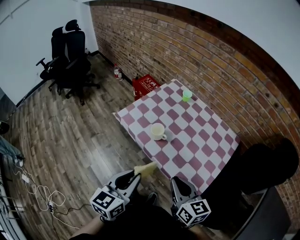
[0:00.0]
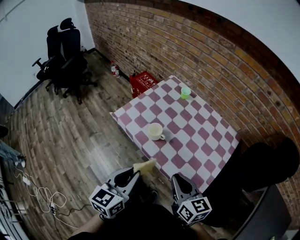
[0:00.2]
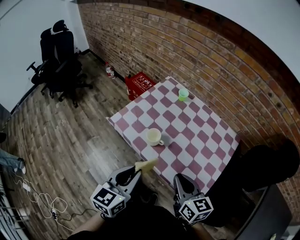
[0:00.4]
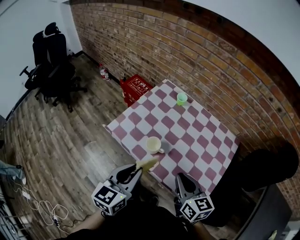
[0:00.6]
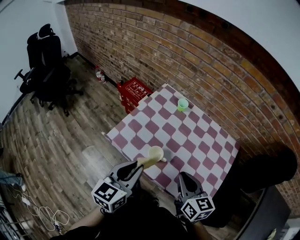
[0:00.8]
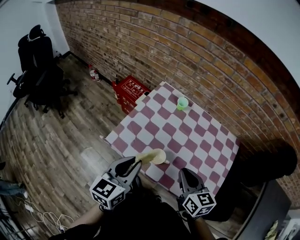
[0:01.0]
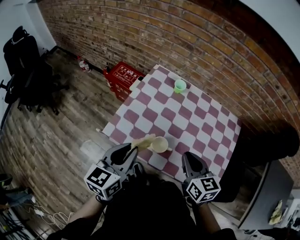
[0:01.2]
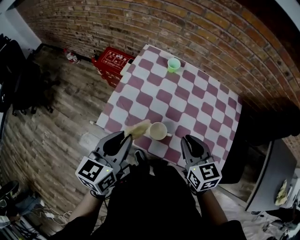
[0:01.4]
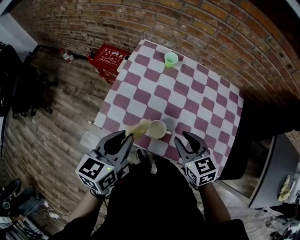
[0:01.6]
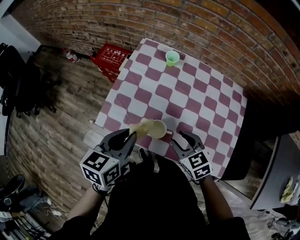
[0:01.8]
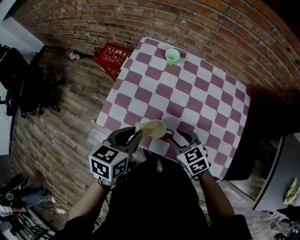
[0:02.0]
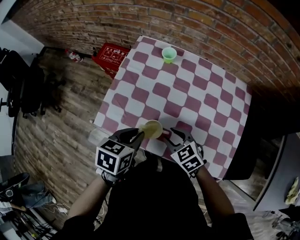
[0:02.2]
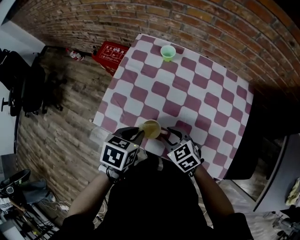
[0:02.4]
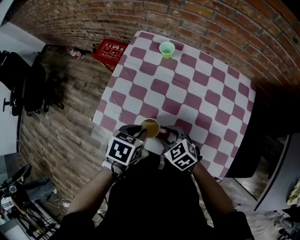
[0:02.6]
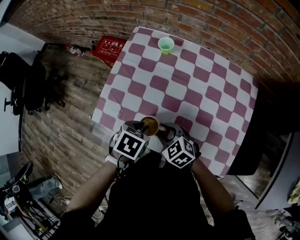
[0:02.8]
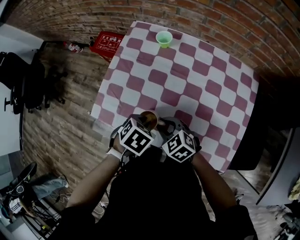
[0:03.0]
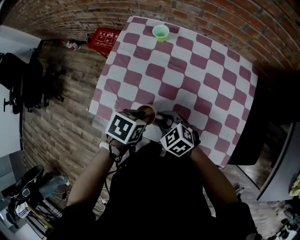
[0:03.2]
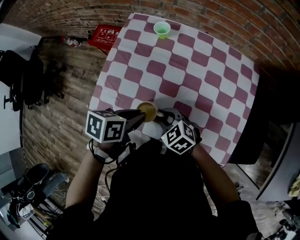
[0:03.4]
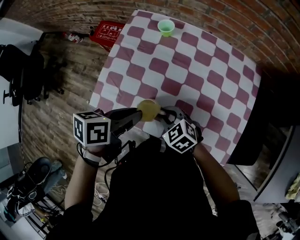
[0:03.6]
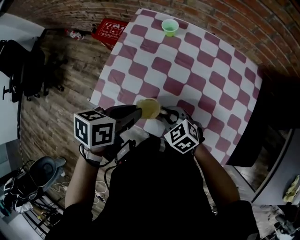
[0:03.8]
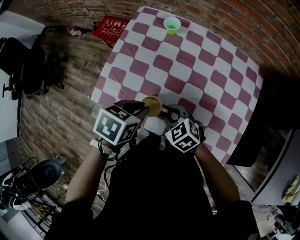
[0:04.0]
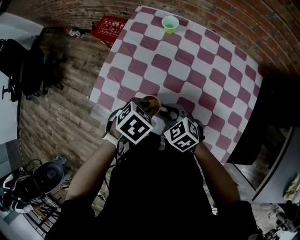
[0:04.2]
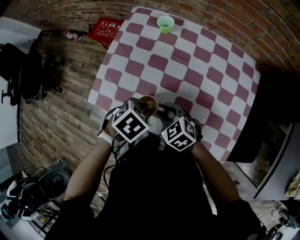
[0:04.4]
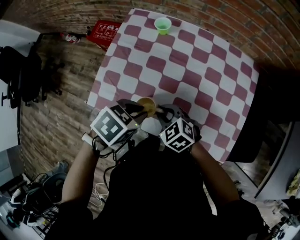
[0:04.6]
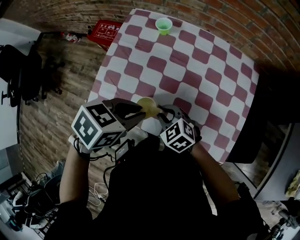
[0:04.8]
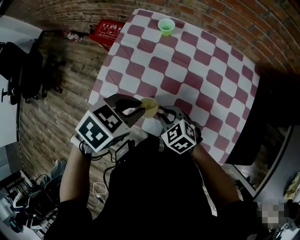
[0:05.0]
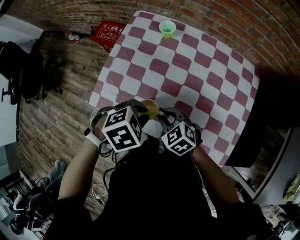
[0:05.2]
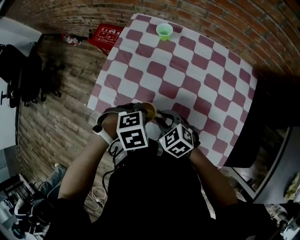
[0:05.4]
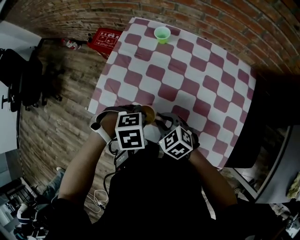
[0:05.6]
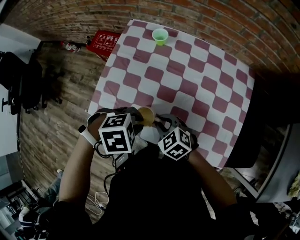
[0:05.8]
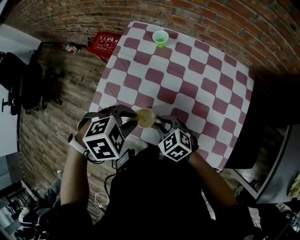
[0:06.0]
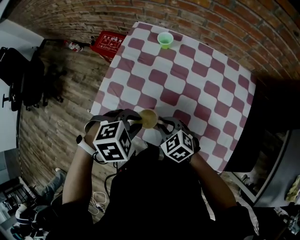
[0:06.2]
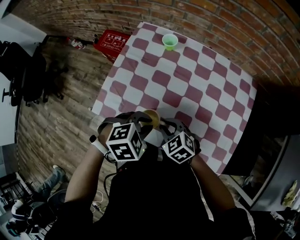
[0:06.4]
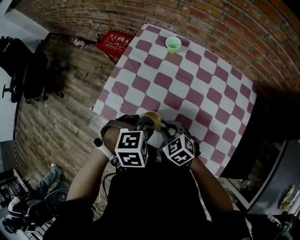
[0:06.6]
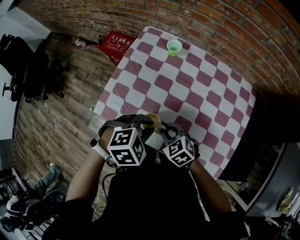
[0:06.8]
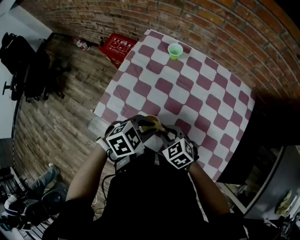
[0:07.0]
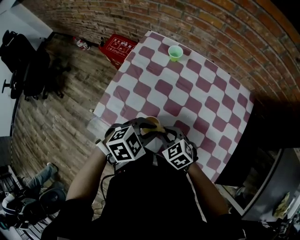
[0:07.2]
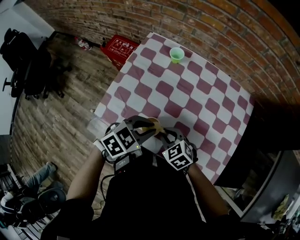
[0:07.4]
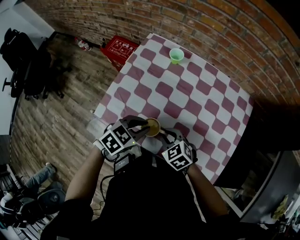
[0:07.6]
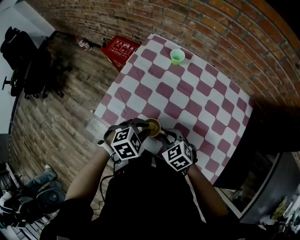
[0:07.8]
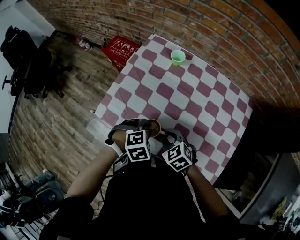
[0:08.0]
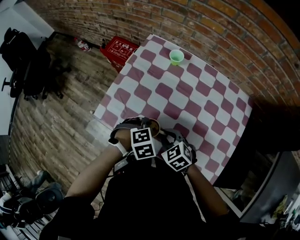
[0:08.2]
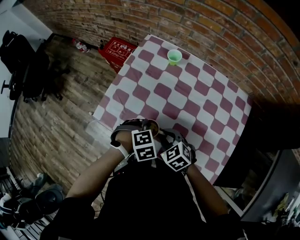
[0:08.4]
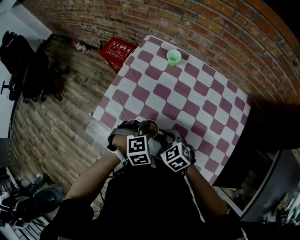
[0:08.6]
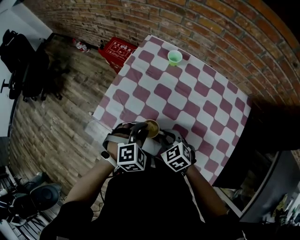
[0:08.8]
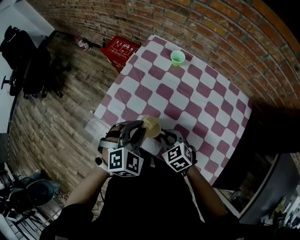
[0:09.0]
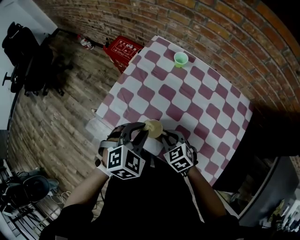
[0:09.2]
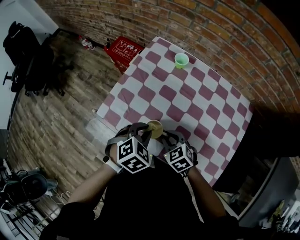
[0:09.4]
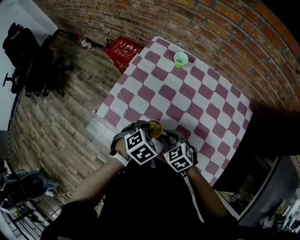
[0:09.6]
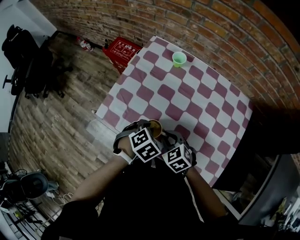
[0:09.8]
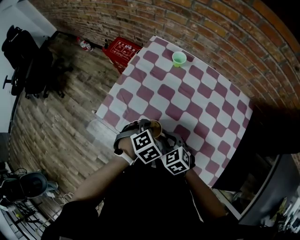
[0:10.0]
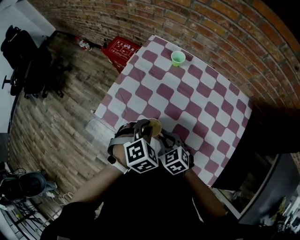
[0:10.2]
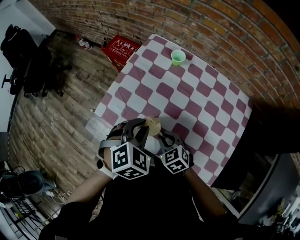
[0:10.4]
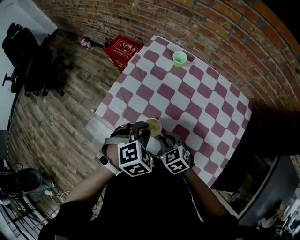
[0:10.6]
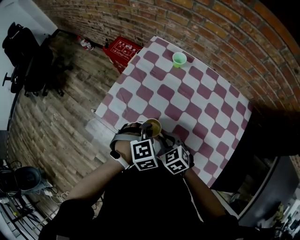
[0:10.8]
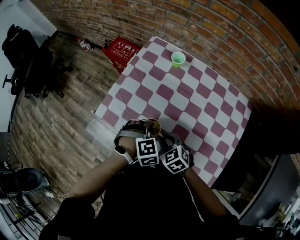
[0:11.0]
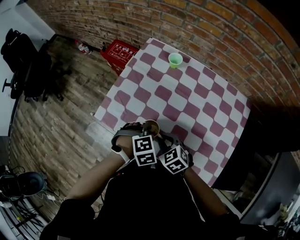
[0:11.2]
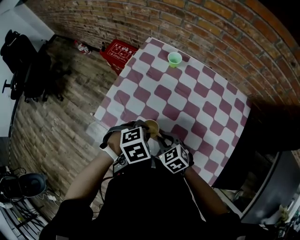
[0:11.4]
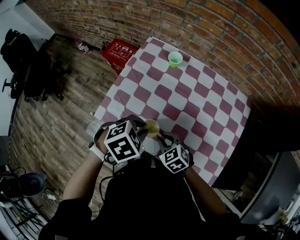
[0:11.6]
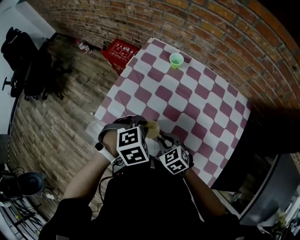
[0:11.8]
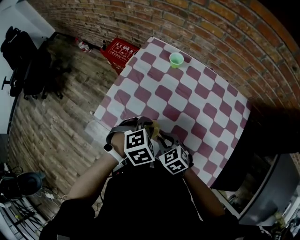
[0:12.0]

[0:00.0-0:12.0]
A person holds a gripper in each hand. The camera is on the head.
0:00.0 to 0:01.6: The left gripper heads forward and to the left, covering about 35 cm, and swivels about 20 degrees. The right gripper goes roughly 30 cm forward and downward, and rotates about 30 degrees.
0:01.6 to 0:03.0: Both grippers move downward, about 15 cm. The right gripper rotates some 30 degrees; the left gripper tilts its fingers approximately 50 degrees downward.
0:03.0 to 0:04.4: The left gripper reaches roughly 10 cm upward, then returns.
0:04.4 to 0:06.0: The left gripper swings up and down, approximately 10 cm each way, with 2 reversals, and rotates approximately 30 degrees.
0:06.0 to 0:07.6: The left gripper turns by roughly 30 degrees.
0:07.6 to 0:09.0: The left gripper heads upward, covering about 5 cm, and changes its angle by about 40 degrees.
0:09.0 to 0:10.4: The left gripper goes downward and returns, about 10 cm each way.
0:10.4 to 0:12.0: The left gripper goes up and down, approximately 10 cm each way, reversing 2 times.

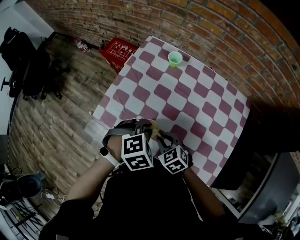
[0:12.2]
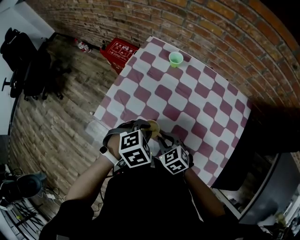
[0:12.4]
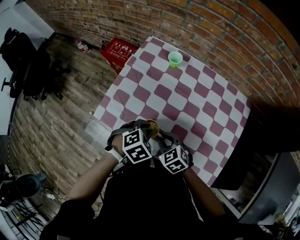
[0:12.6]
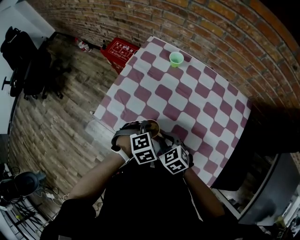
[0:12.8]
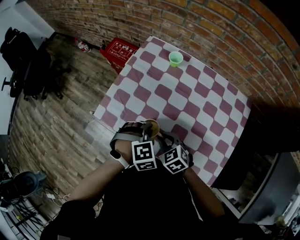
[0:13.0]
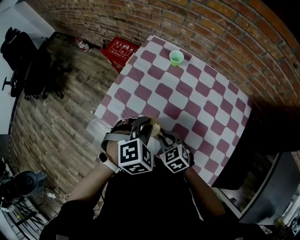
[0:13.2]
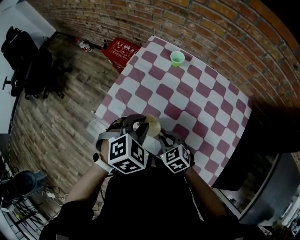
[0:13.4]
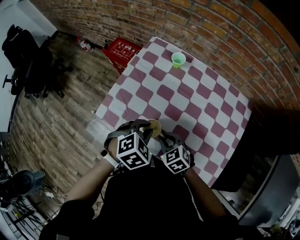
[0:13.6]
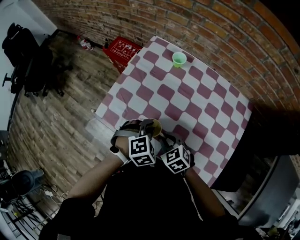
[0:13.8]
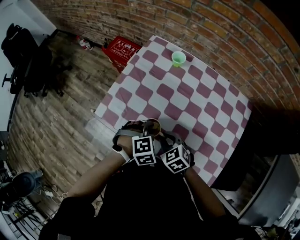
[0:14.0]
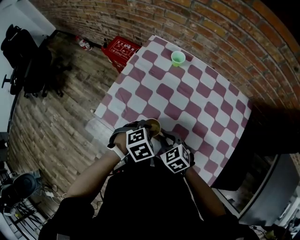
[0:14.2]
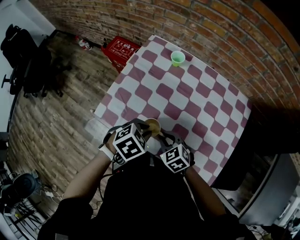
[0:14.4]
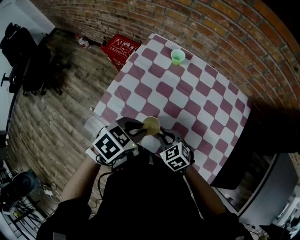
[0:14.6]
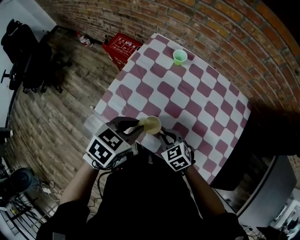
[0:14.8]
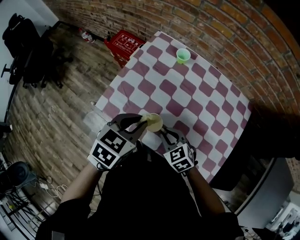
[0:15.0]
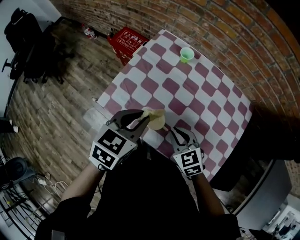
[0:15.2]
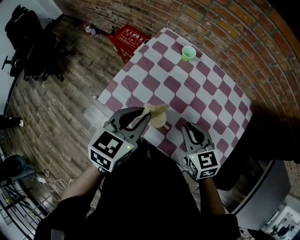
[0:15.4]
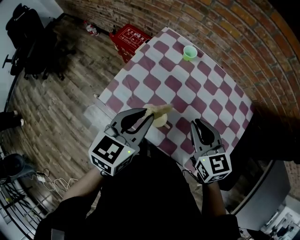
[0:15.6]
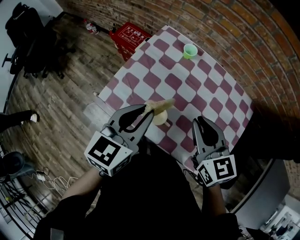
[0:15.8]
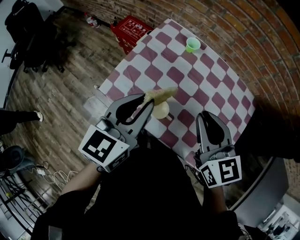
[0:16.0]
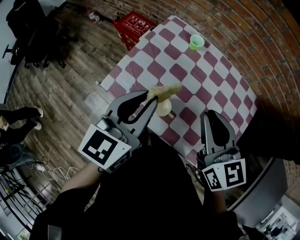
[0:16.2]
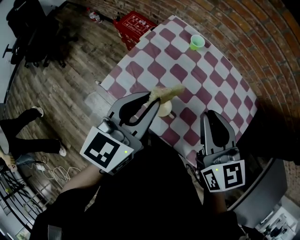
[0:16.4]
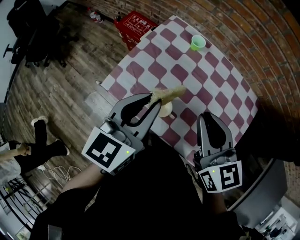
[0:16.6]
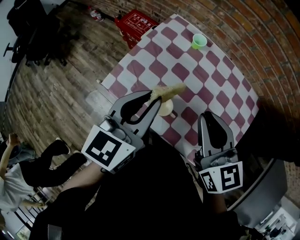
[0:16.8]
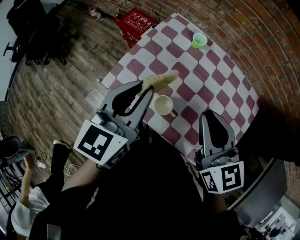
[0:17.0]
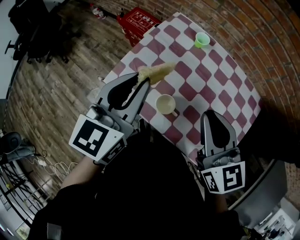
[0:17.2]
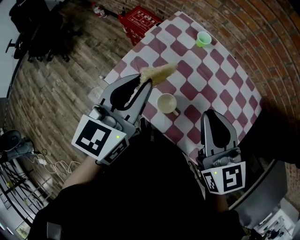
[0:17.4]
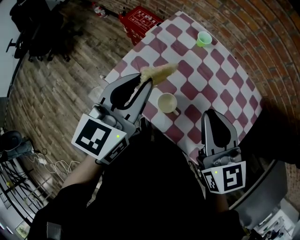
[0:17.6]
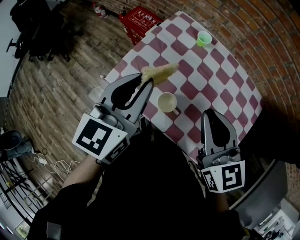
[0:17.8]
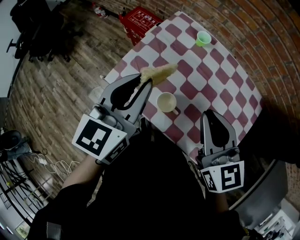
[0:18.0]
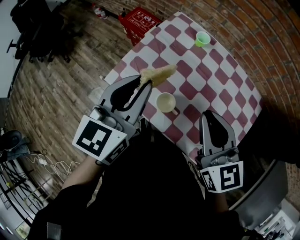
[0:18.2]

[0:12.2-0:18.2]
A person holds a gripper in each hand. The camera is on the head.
0:12.2 to 0:13.8: The left gripper moves up and down over some 15 cm, changing direction 2 times.
0:13.8 to 0:15.2: The left gripper goes roughly 15 cm upward, and rotates around the line of its fingers by approximately 50 degrees, counterclockwise from behind; the right gripper heads upward, covering roughly 5 cm.
0:15.2 to 0:16.6: The left gripper shifts approximately 10 cm upward, and swivels roughly 30 degrees; the right gripper is displaced upward by roughly 20 cm, and turns by roughly 30 degrees.
0:16.6 to 0:18.2: The grippers move only a little.

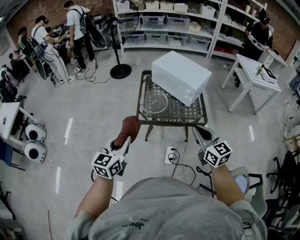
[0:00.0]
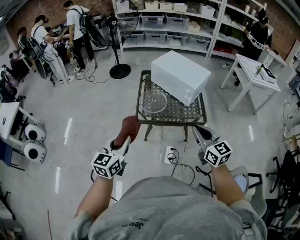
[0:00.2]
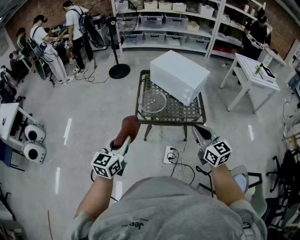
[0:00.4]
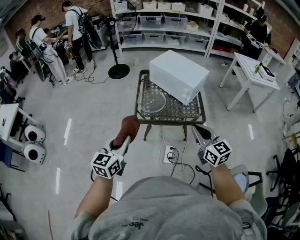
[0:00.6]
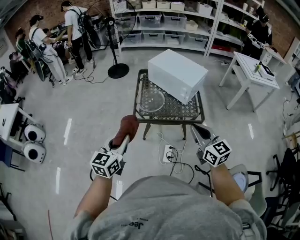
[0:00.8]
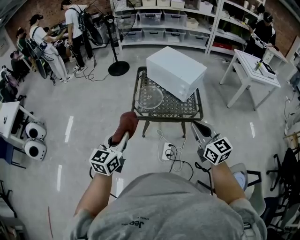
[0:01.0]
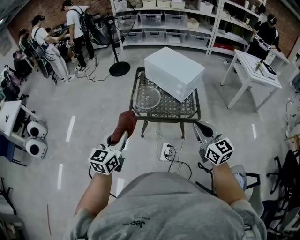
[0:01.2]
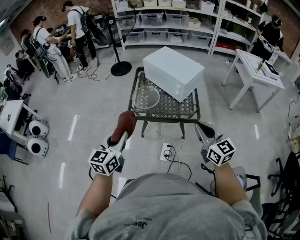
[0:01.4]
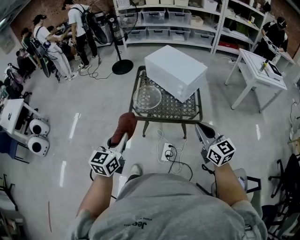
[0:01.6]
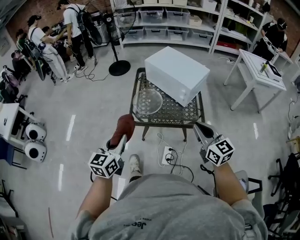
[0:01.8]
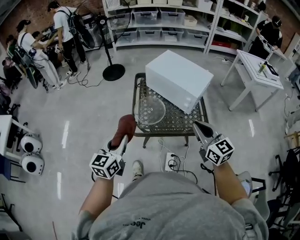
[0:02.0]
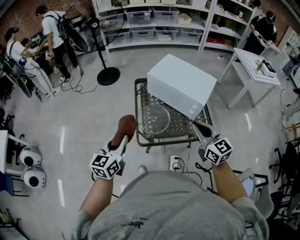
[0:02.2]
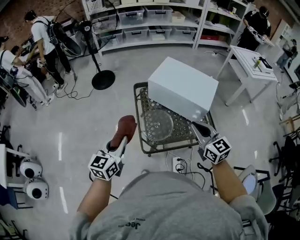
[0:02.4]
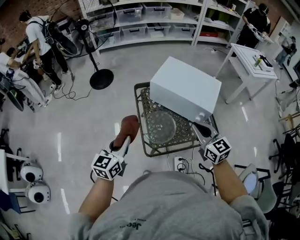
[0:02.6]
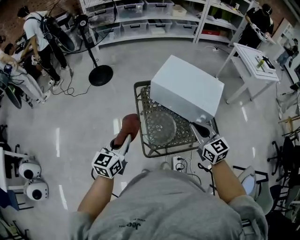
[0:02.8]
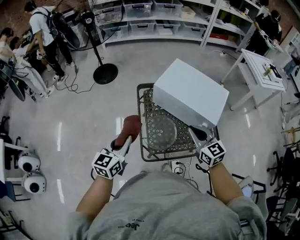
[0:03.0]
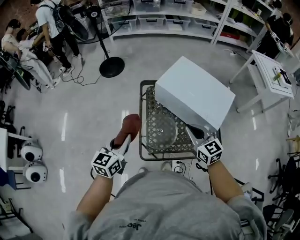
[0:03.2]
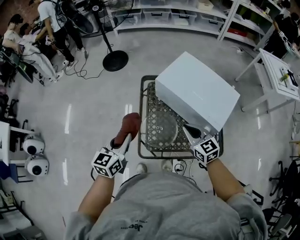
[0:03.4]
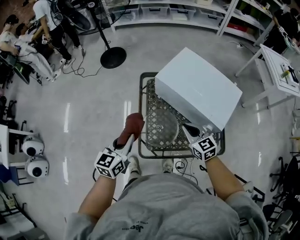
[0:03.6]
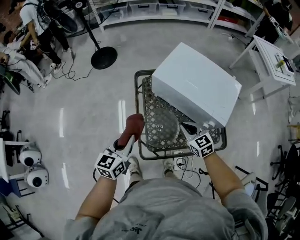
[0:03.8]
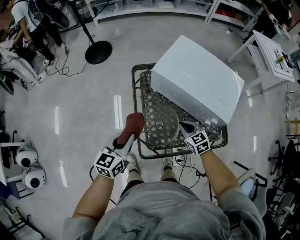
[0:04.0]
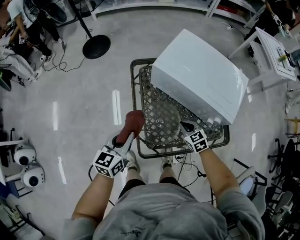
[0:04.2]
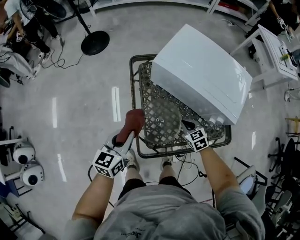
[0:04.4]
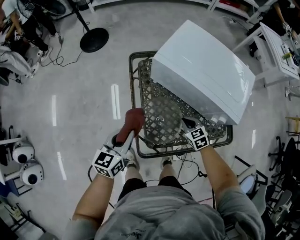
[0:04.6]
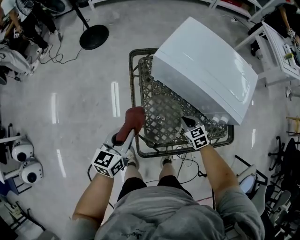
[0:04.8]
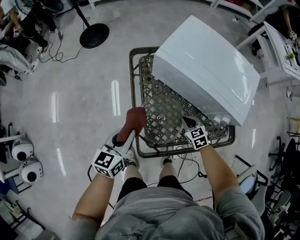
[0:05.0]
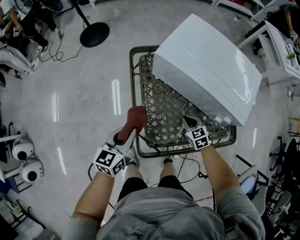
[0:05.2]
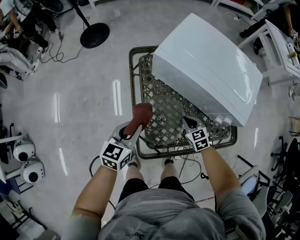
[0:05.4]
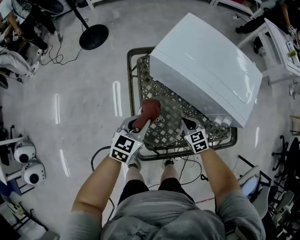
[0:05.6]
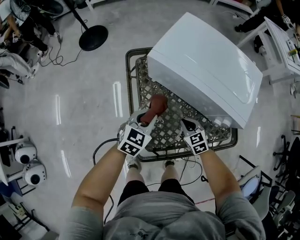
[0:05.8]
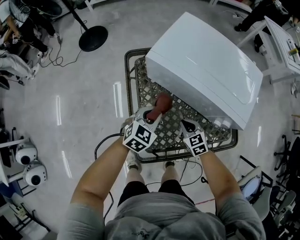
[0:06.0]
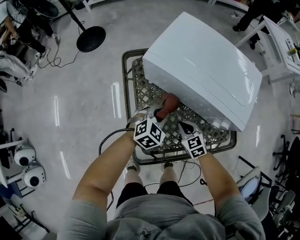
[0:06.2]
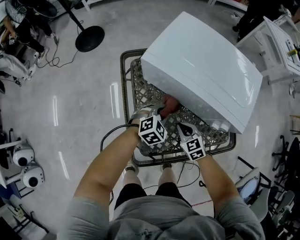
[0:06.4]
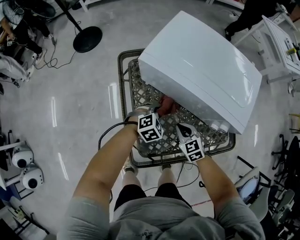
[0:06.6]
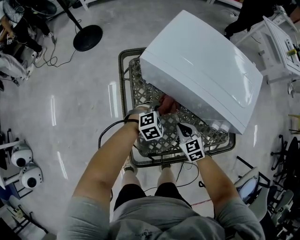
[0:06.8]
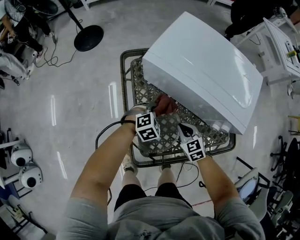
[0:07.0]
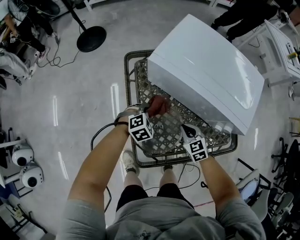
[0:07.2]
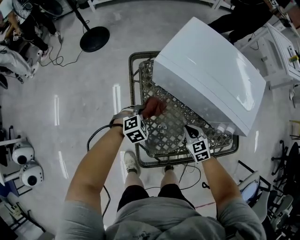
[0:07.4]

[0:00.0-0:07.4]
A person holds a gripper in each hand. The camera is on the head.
0:00.0 to 0:01.4: Both grippers move to the right, approximately 10 cm.
0:01.4 to 0:03.0: Both grippers are carried forward and to the left, roughly 40 cm.
0:03.0 to 0:04.4: The right gripper shifts some 35 cm downward, and angles its fingers downward, by roughly 30 degrees; the left gripper shifts roughly 15 cm downward.
0:04.4 to 0:06.0: The left gripper is displaced to the right, downward and forward by about 20 cm, and rotates approximately 40 degrees.
0:06.0 to 0:07.4: The left gripper travels downward and to the left by approximately 15 cm, and swivels approximately 30 degrees.
